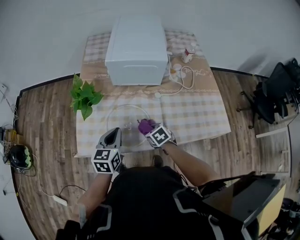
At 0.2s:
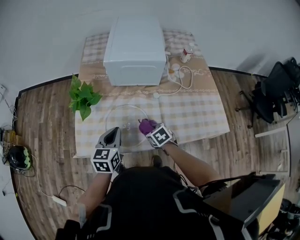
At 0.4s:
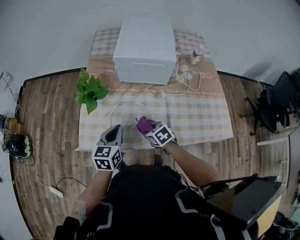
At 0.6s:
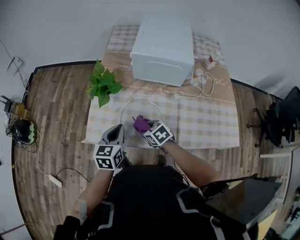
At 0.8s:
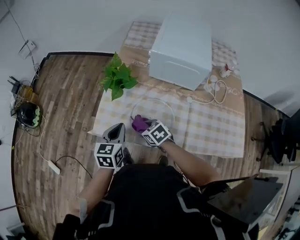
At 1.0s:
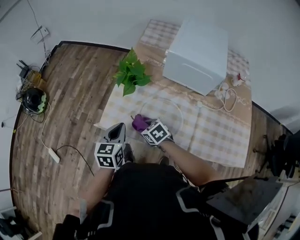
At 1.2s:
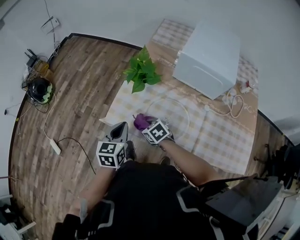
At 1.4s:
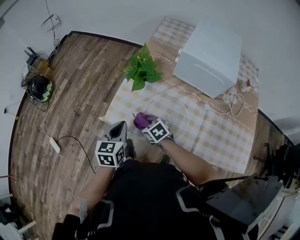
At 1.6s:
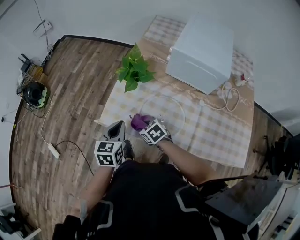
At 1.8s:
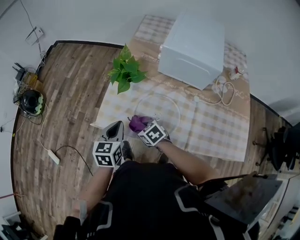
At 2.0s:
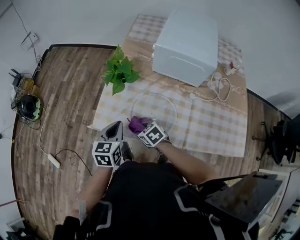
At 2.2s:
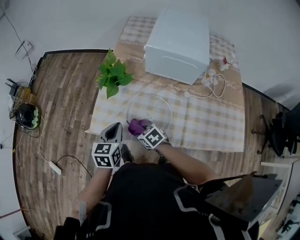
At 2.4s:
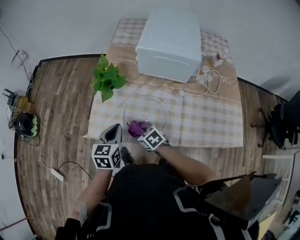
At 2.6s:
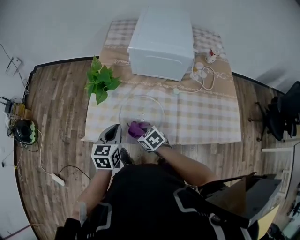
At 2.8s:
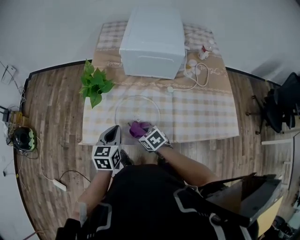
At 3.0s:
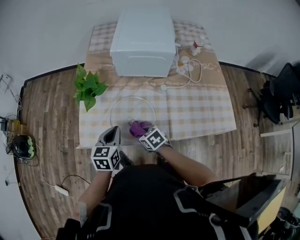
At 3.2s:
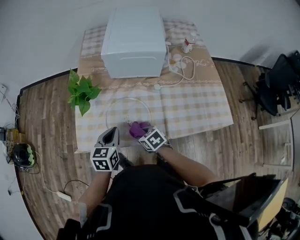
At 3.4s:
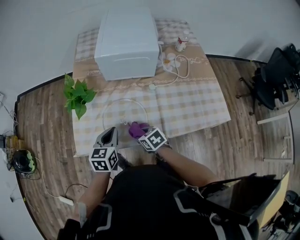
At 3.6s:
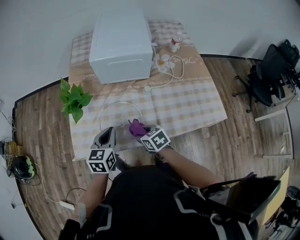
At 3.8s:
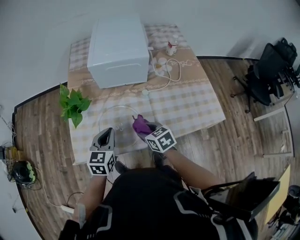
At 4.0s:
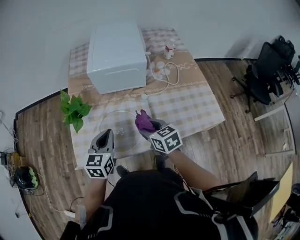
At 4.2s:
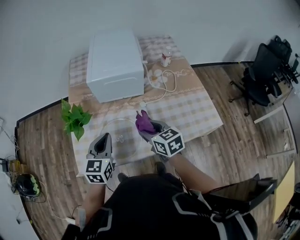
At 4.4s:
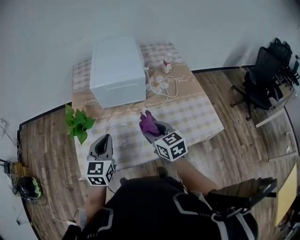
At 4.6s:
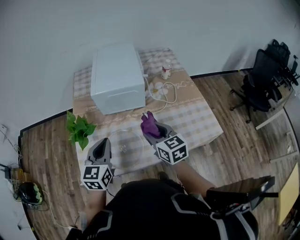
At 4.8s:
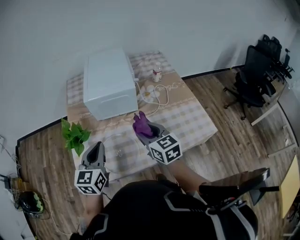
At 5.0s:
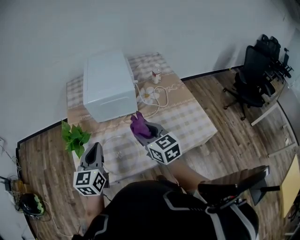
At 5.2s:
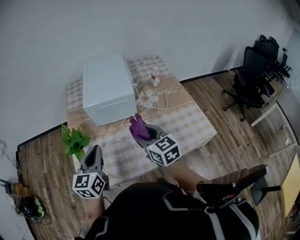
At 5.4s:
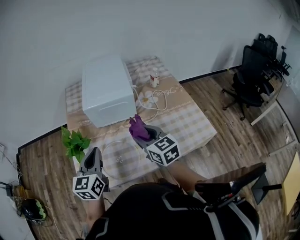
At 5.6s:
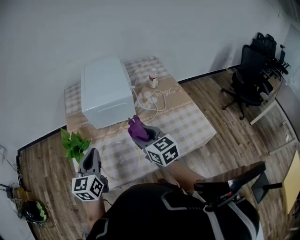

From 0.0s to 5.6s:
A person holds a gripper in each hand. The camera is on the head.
From 0.0s to 1.4s: The right gripper moves about 20 cm, and rotates roughly 30 degrees. The left gripper shifts by roughly 15 cm, and changes its angle by some 30 degrees.
From 1.4s to 2.8s: The left gripper moves to the right, some 10 cm, and changes its angle by approximately 20 degrees, while the right gripper heads to the right and backward, covering roughly 10 cm, and changes its angle by roughly 20 degrees.
From 2.8s to 4.2s: The left gripper is displaced upward and to the right by approximately 10 cm, and rotates some 20 degrees, while the right gripper heads upward and to the right, covering some 25 cm, and swivels some 40 degrees.
From 4.2s to 5.6s: Both grippers travel together upward, roughly 10 cm.

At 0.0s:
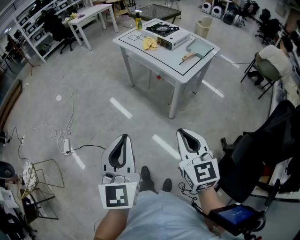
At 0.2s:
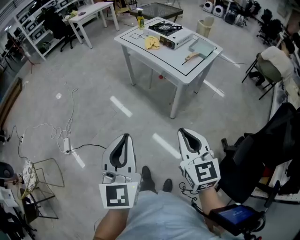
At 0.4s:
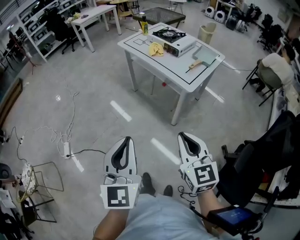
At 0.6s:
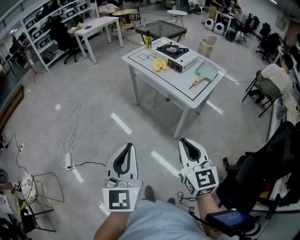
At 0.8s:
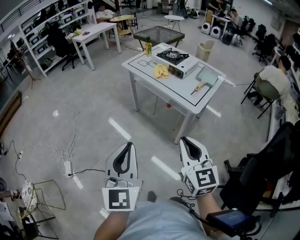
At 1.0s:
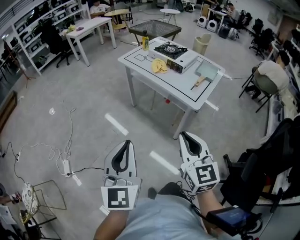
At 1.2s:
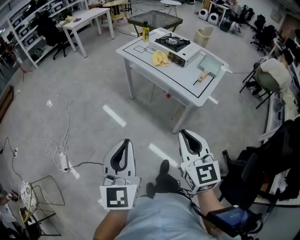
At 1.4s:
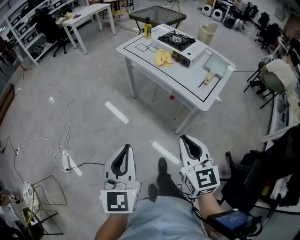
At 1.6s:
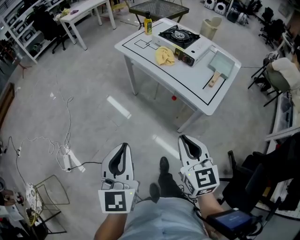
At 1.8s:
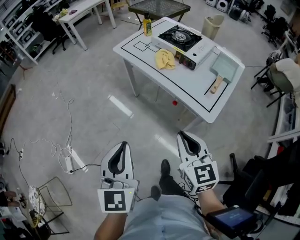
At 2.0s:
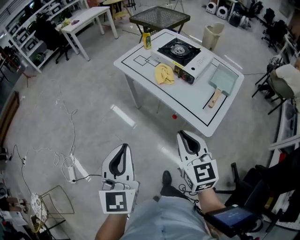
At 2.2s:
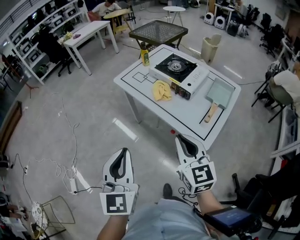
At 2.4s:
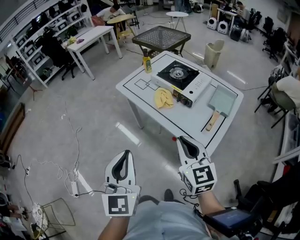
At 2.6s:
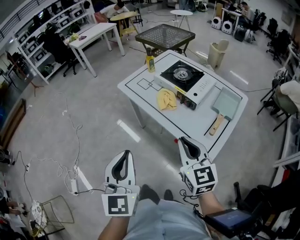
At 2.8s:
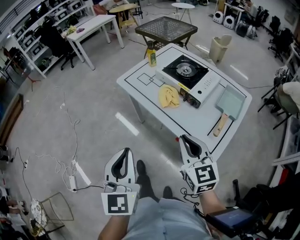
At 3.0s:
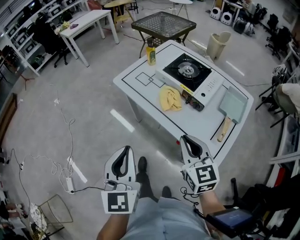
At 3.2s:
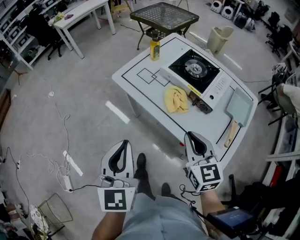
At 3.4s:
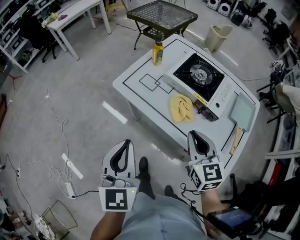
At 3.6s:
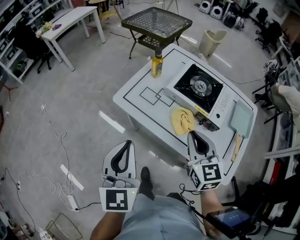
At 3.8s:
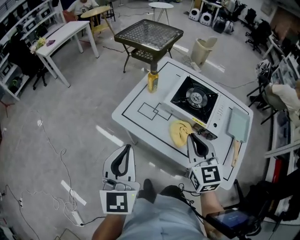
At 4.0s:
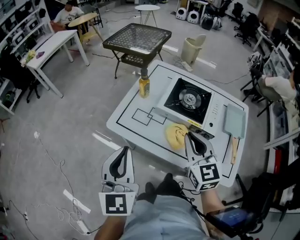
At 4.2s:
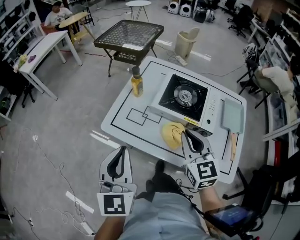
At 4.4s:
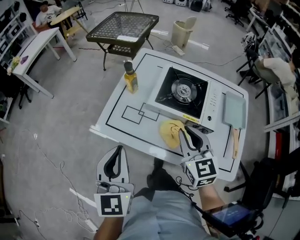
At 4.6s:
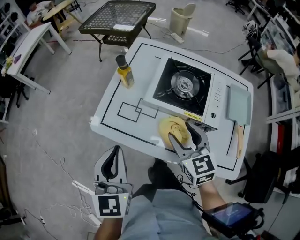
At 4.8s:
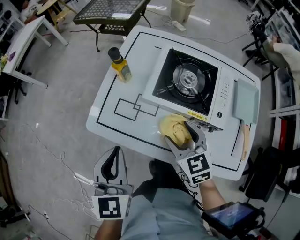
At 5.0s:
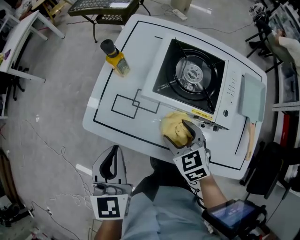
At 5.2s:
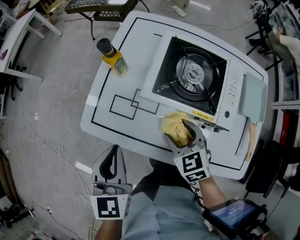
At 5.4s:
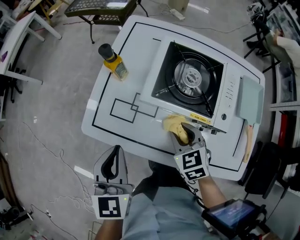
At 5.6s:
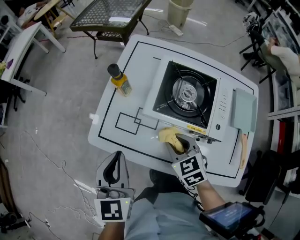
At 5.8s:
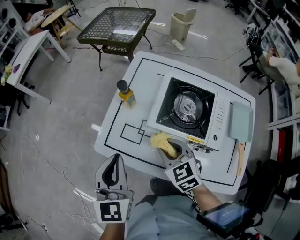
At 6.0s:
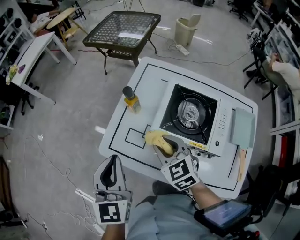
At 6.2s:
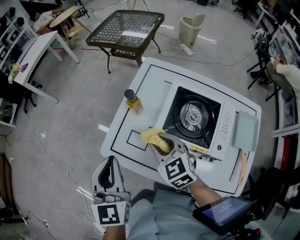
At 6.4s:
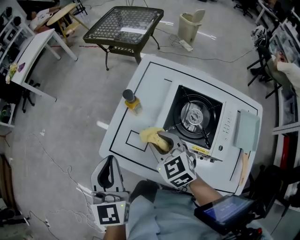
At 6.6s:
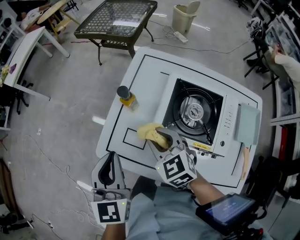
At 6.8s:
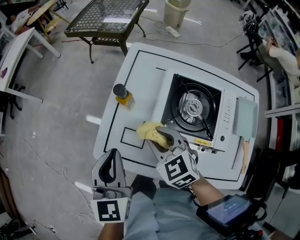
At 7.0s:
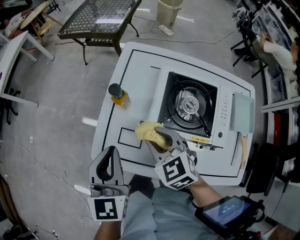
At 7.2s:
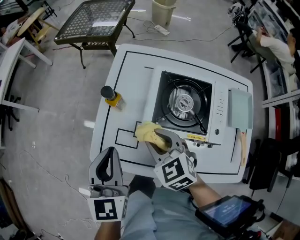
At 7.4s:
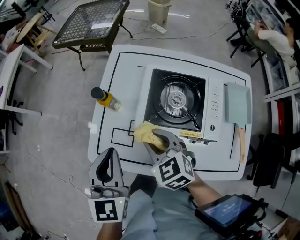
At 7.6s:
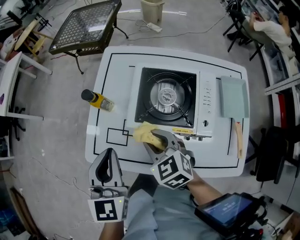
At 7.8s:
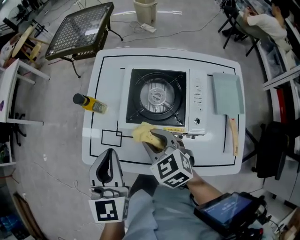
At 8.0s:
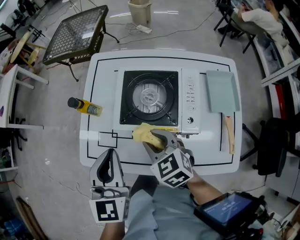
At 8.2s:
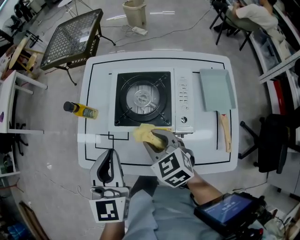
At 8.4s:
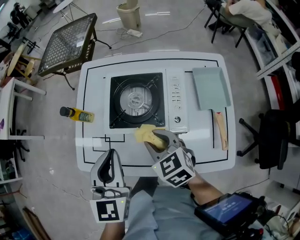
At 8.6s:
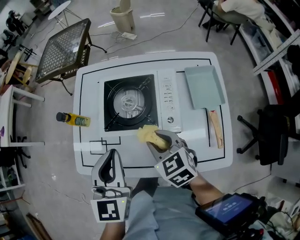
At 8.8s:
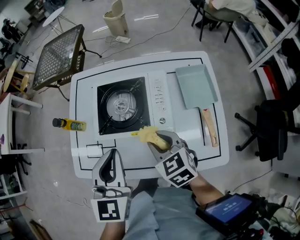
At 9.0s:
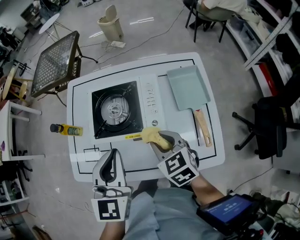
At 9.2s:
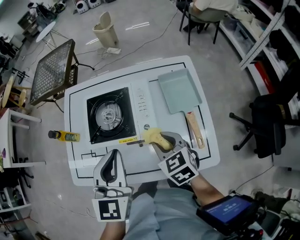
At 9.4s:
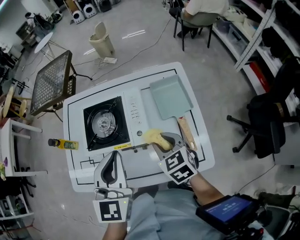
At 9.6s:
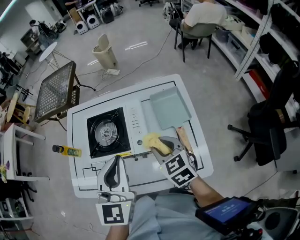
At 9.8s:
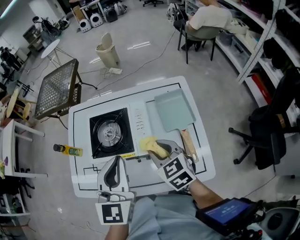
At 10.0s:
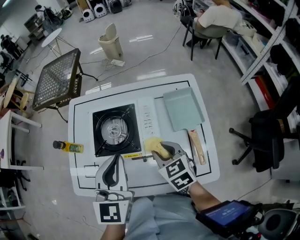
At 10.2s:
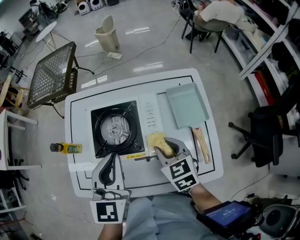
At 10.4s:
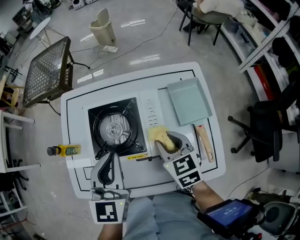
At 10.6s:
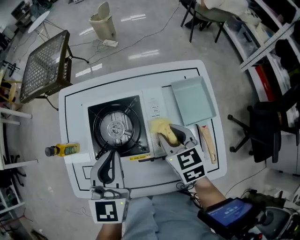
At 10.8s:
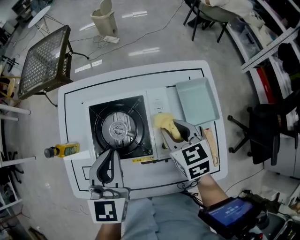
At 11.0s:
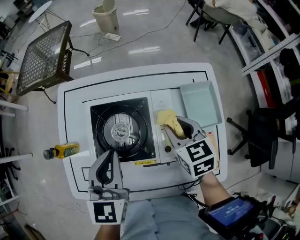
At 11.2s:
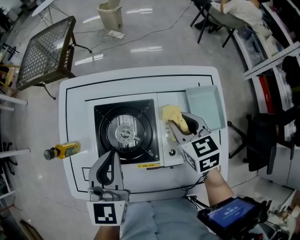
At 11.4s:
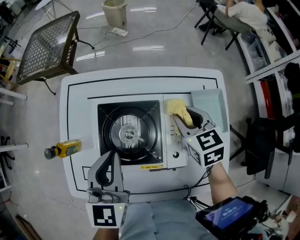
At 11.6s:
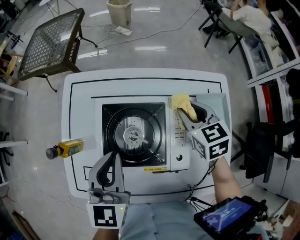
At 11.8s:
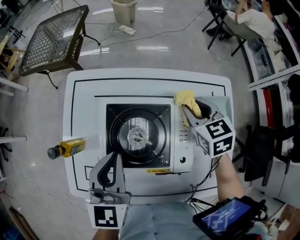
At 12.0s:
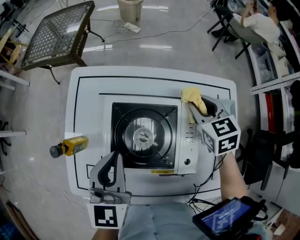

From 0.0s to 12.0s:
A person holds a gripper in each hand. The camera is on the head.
From 0.0s to 1.6s: The grippers both shift forward by about 30 cm.
From 1.6s to 3.0s: The two grippers go approximately 30 cm forward.
From 3.0s to 4.4s: Both grippers travel together forward, approximately 30 cm. The right gripper rotates some 20 degrees; the left gripper swivels approximately 20 degrees.
From 4.4s to 6.0s: The left gripper travels forward by about 10 cm. Meanwhile the right gripper shifts about 15 cm forward and to the left, travels downward and back again, approximately 20 cm each way, changes its angle by about 20 degrees, and opens, then closes again.
From 6.0s to 7.6s: The right gripper ends up about 5 cm from where it was. The left gripper moves to the right, about 10 cm.
From 7.6s to 9.0s: The grippers both shift to the right by roughly 20 cm. The right gripper rotates approximately 20 degrees.
From 9.0s to 10.4s: Both grippers move forward, some 10 cm.
From 10.4s to 12.0s: The right gripper travels forward by approximately 20 cm. Meanwhile the left gripper is displaced to the left, forward and downward by about 15 cm.

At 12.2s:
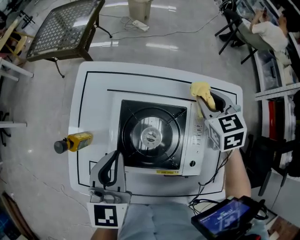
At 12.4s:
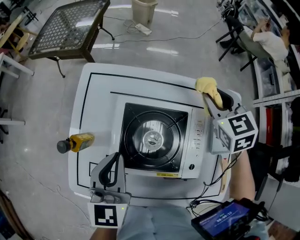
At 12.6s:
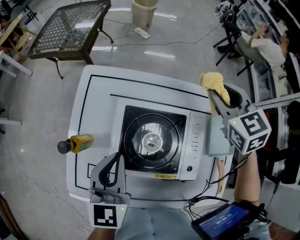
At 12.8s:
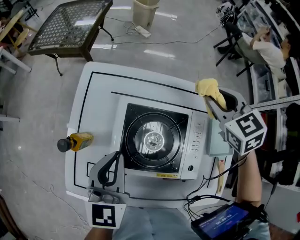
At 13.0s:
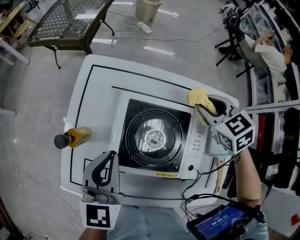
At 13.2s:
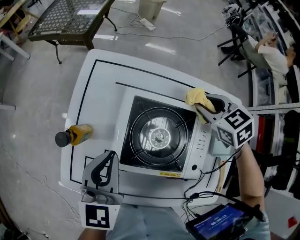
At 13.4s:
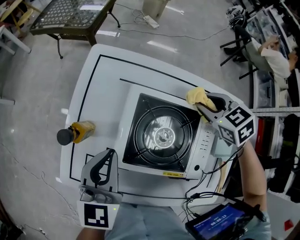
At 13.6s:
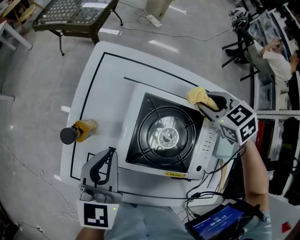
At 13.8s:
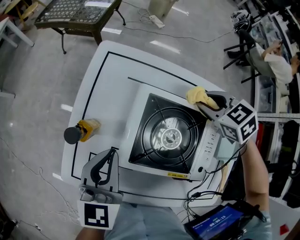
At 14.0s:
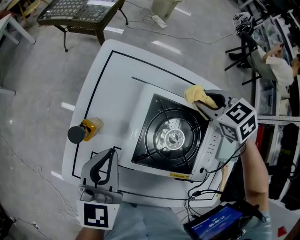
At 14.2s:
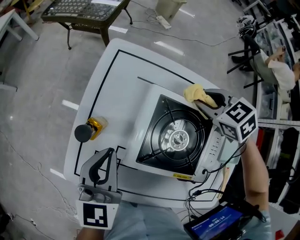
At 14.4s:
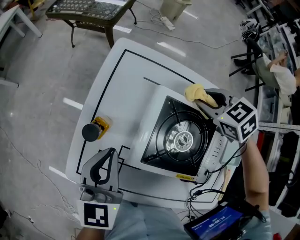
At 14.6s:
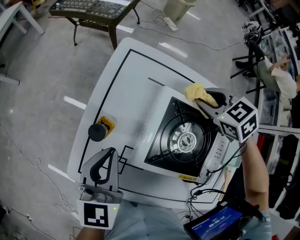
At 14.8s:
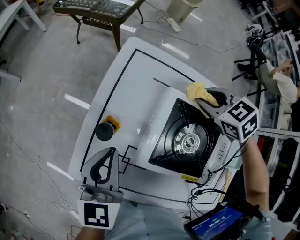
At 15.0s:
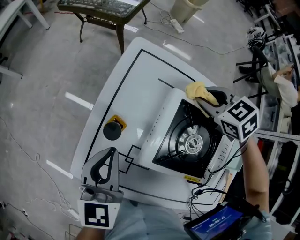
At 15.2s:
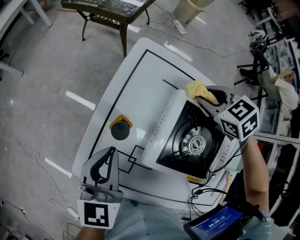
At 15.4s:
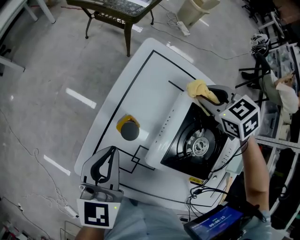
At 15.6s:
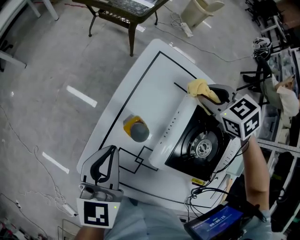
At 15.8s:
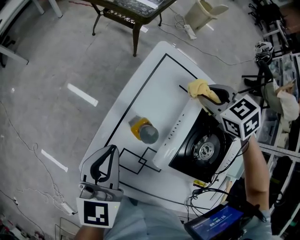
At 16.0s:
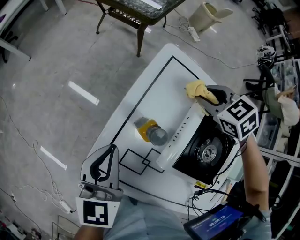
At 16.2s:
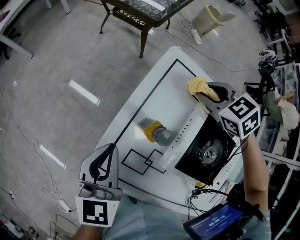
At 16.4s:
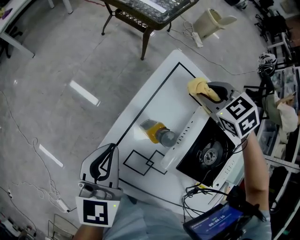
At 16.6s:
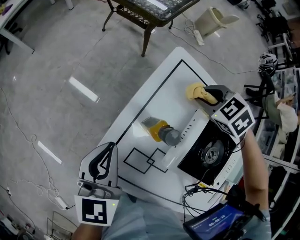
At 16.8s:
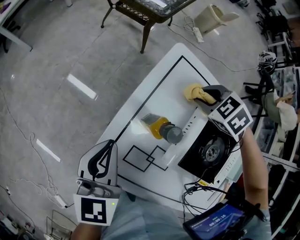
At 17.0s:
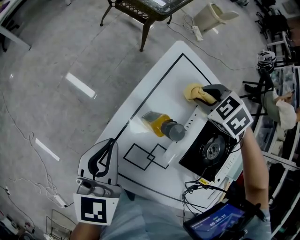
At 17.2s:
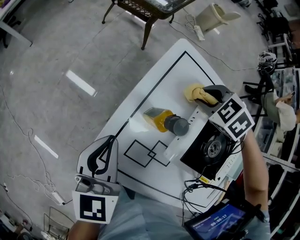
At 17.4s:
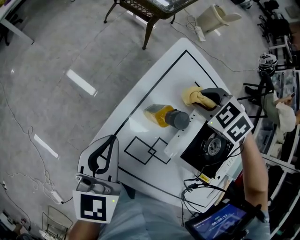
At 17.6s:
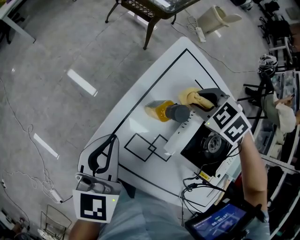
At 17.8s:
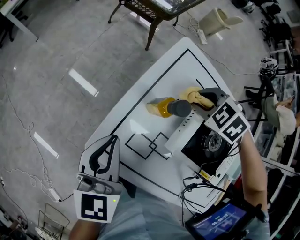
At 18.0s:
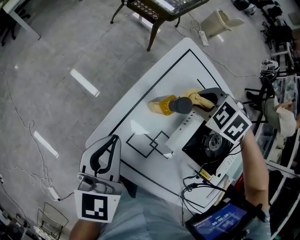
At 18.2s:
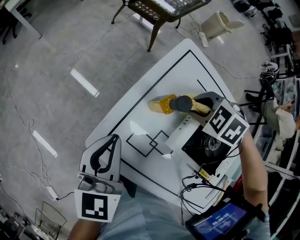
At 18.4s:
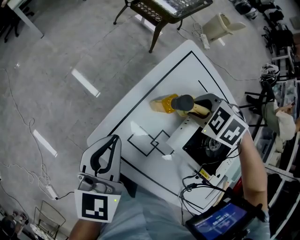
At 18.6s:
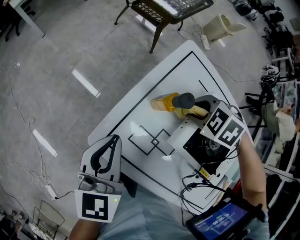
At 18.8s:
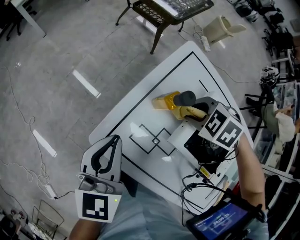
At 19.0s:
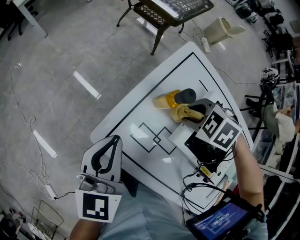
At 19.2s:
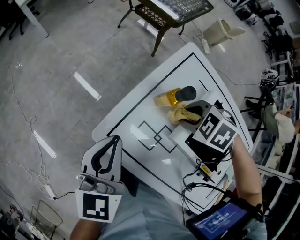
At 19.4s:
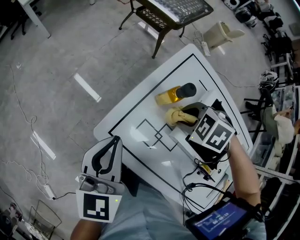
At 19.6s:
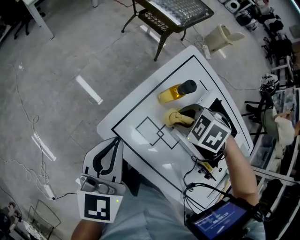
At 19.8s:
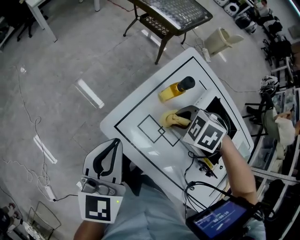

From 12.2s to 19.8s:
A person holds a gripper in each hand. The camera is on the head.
From 12.2s to 13.8s: Both grippers travel together to the left, some 10 cm. The right gripper travels upward and back again, approximately 10 cm each way, and swivels roughly 30 degrees.
From 13.8s to 15.2s: The left gripper travels to the left by some 10 cm, while the right gripper moves to the left and forward, some 15 cm.
From 15.2s to 16.8s: Both grippers move to the left, about 10 cm. The right gripper turns by roughly 20 degrees.
From 16.8s to 18.2s: The right gripper changes place by about 10 cm, while the left gripper ends up approximately 5 cm from where it was.
From 18.2s to 19.8s: The right gripper ends up some 15 cm from where it was. The left gripper ends up approximately 10 cm from where it was.
